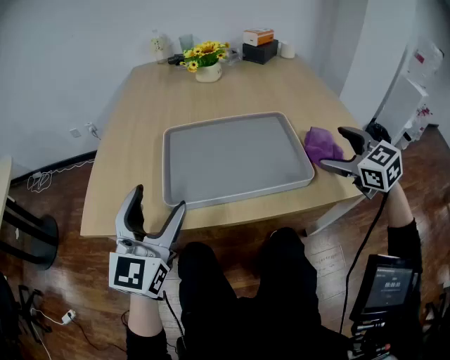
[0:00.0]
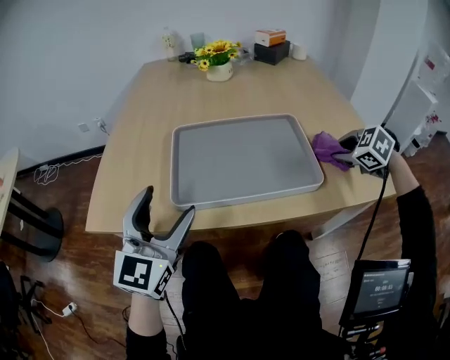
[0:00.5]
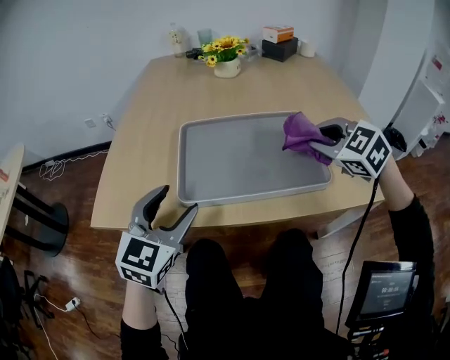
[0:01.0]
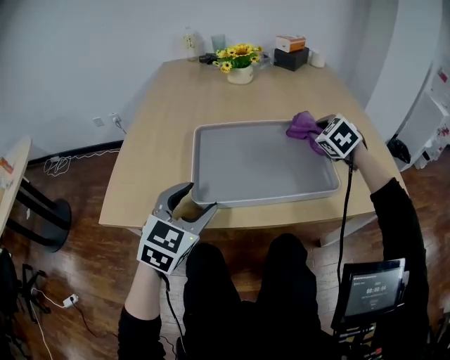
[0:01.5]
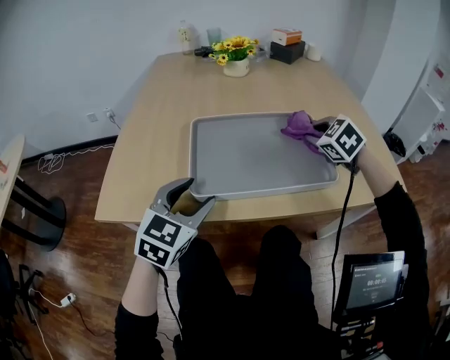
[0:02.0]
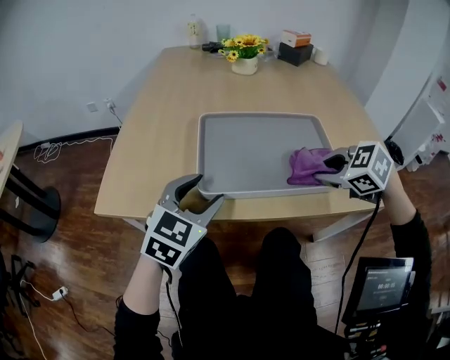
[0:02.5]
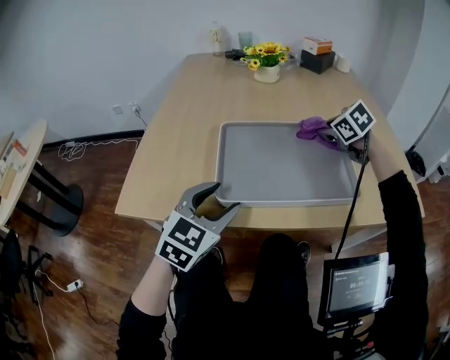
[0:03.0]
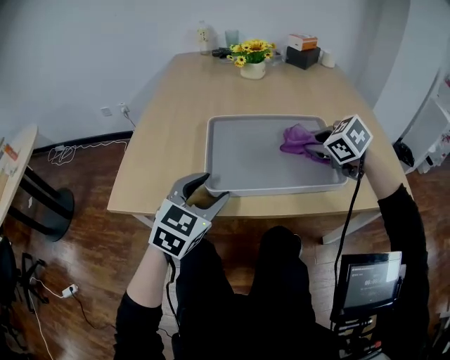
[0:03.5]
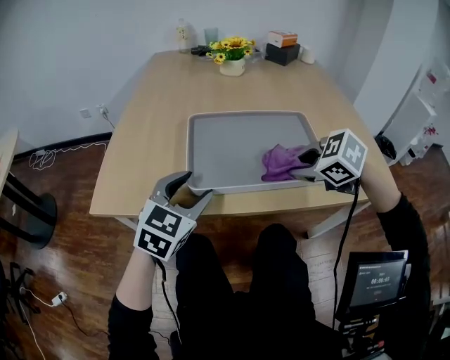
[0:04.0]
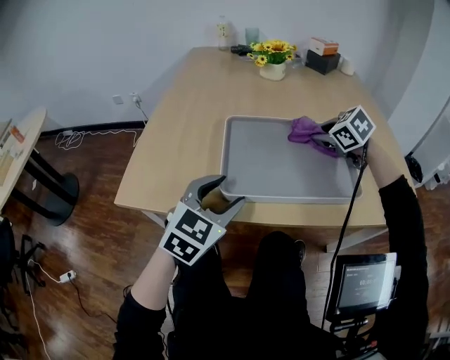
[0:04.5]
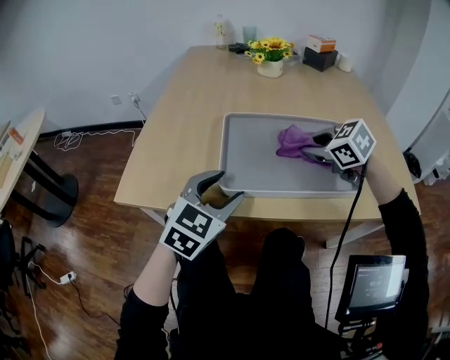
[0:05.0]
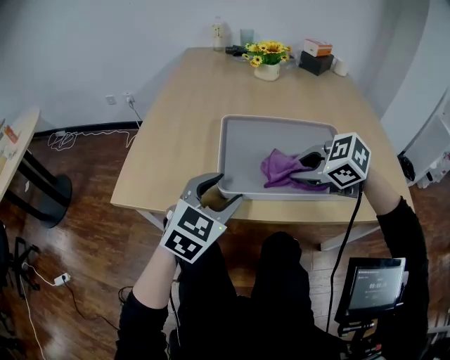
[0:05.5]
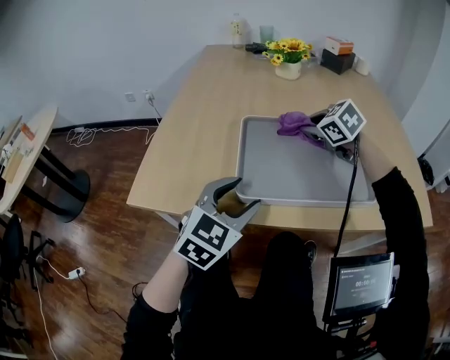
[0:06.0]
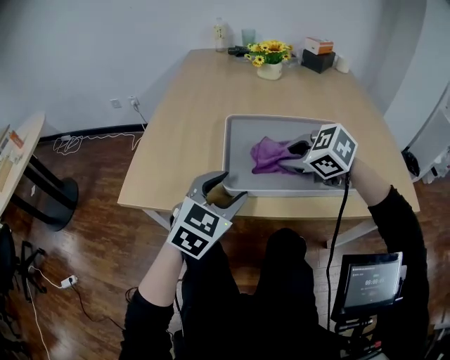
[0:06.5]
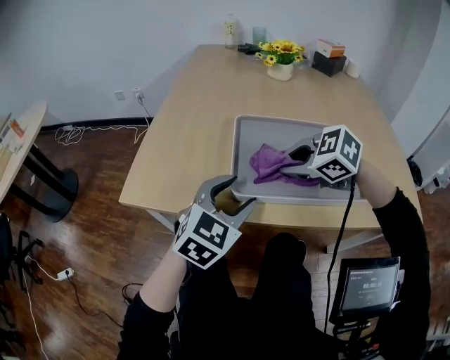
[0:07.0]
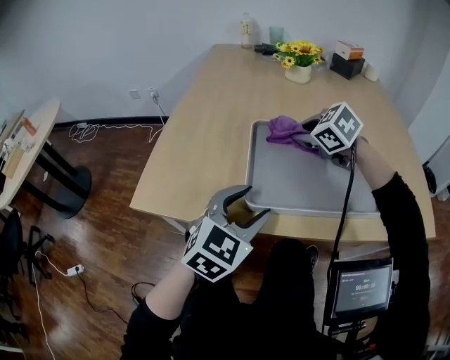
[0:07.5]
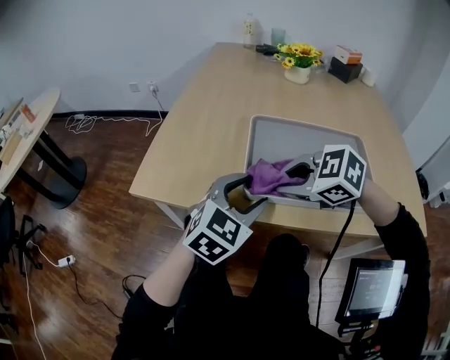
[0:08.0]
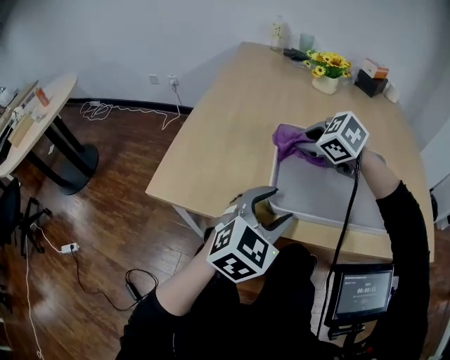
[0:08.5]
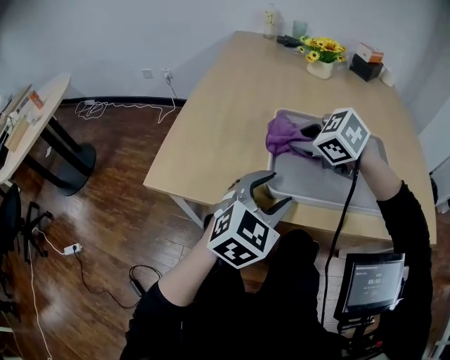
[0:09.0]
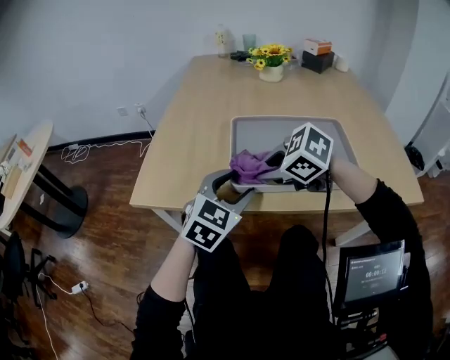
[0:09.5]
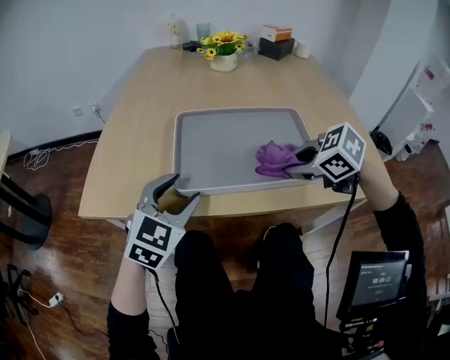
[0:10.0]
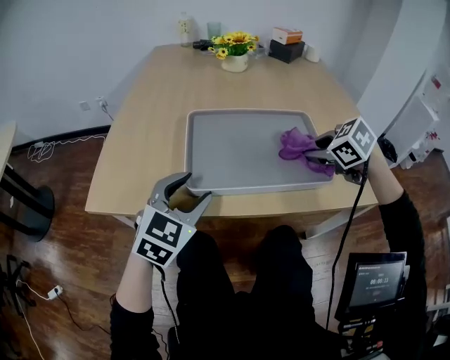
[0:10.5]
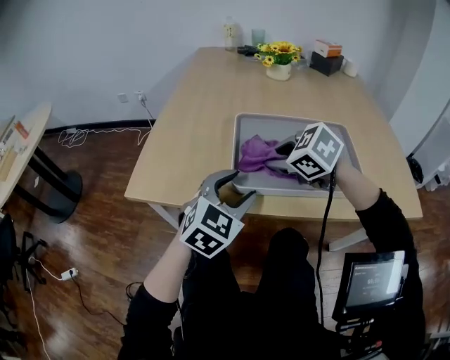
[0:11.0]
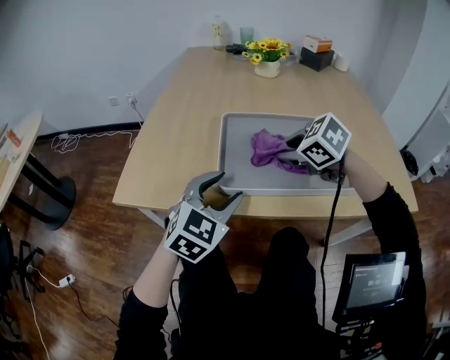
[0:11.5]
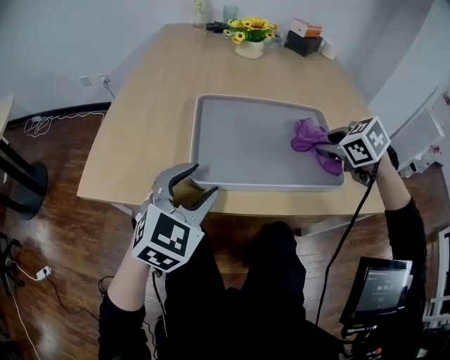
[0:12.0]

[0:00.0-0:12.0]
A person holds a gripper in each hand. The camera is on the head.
0:00.0 to 0:02.0: The left gripper moves downward, approximately 10 cm, turns by about 30 degrees, and closes; the right gripper shifts approximately 15 cm to the left, forward and downward, changes its angle by approximately 20 degrees, and closes.
0:02.0 to 0:04.0: The right gripper goes forward and backward, some 20 cm each way, reversing 2 times, and swivels some 30 degrees.
0:04.0 to 0:06.0: The right gripper goes forward and backward, approximately 20 cm each way, reversing 2 times.
0:06.0 to 0:08.0: The right gripper moves forward and backward over approximately 15 cm, changing direction 2 times, and swivels some 30 degrees.
0:08.0 to 0:10.0: The right gripper heads to the right, covering approximately 20 cm, reaches about 15 cm forward, then returns, and turns by approximately 30 degrees.
0:10.0 to 0:12.0: The right gripper moves left and right over roughly 25 cm, changing direction 2 times.

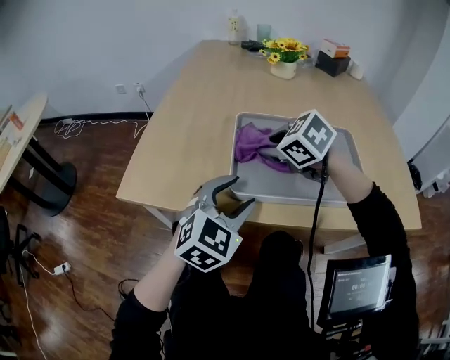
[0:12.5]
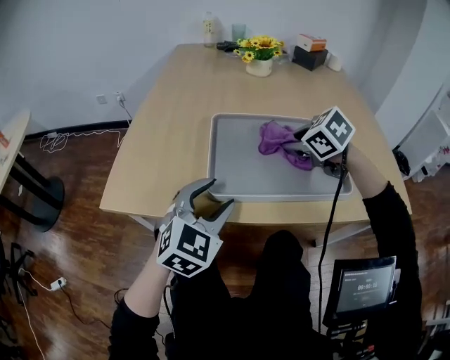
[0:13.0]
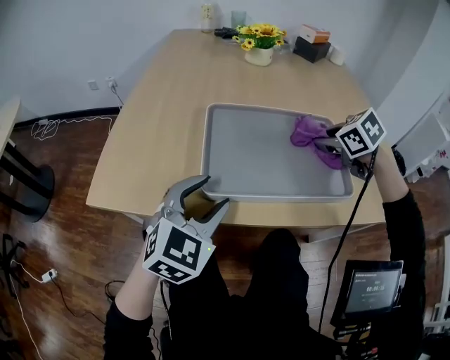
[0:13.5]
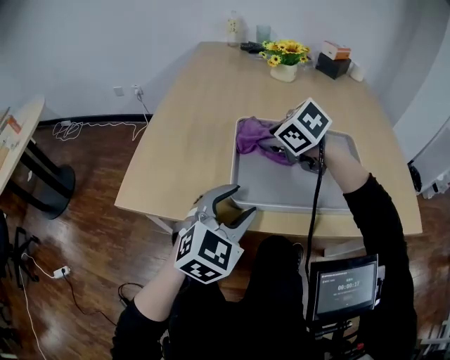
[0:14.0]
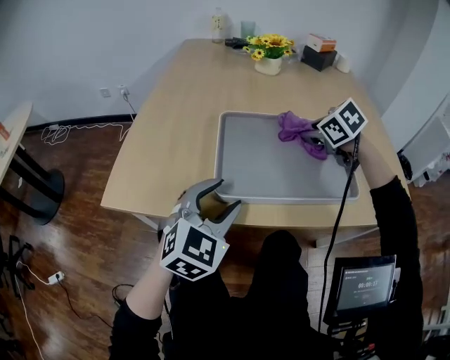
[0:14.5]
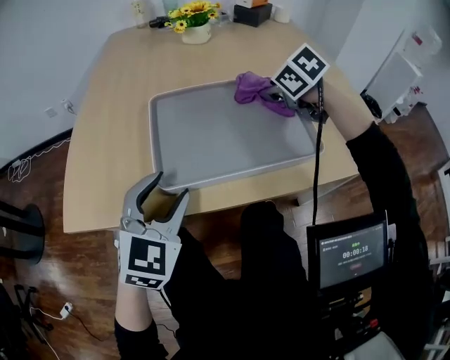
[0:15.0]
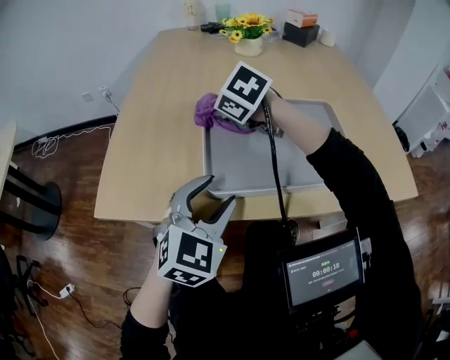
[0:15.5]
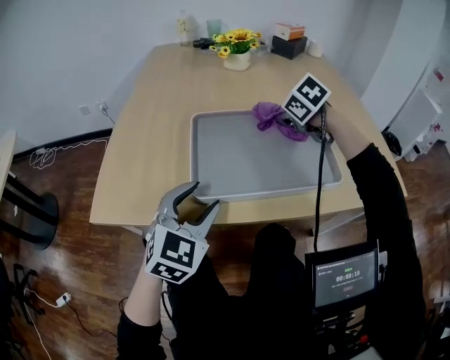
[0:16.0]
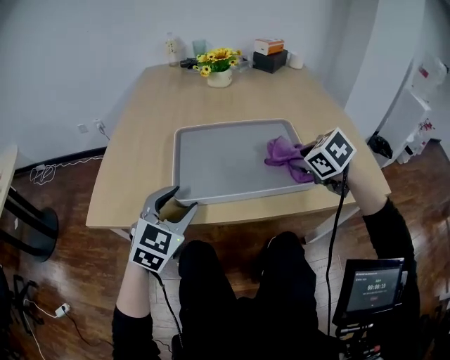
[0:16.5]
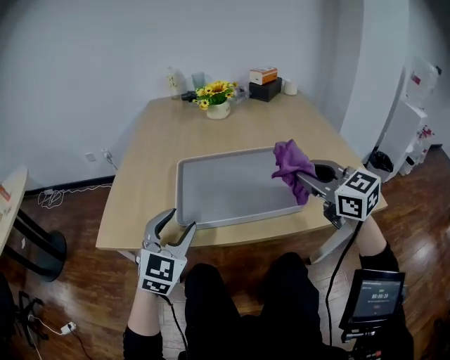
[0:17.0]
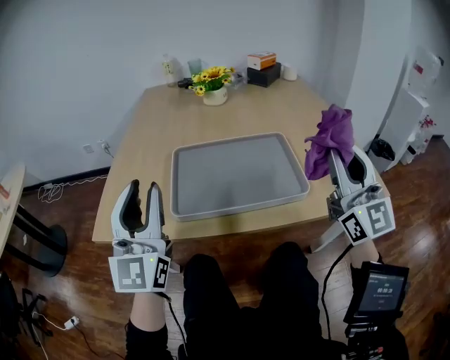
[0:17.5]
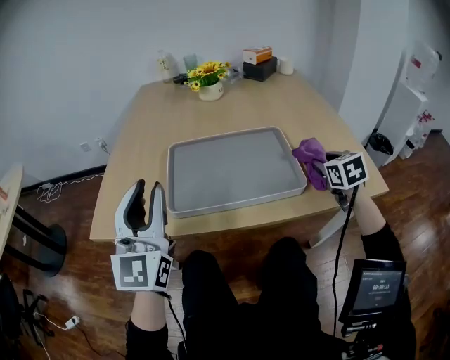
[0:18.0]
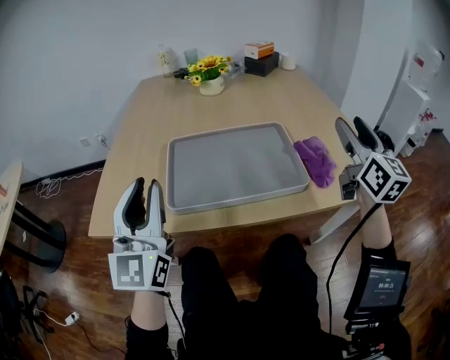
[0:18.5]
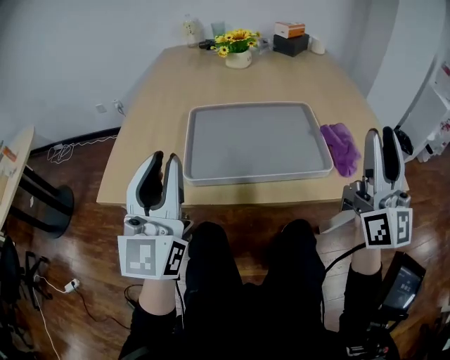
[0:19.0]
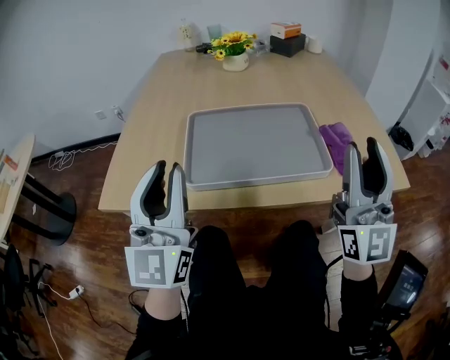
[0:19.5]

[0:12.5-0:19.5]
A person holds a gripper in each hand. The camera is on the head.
0:12.5 to 0:14.5: The right gripper goes left and right, some 25 cm each way, reversing 2 times.
0:14.5 to 0:16.0: The right gripper moves left and right over approximately 25 cm, changing direction 2 times.
0:16.0 to 0:17.5: The right gripper moves backward, upward and to the right, approximately 35 cm, and points its fingers some 80 degrees further upward. The left gripper moves upward, about 20 cm, and angles its fingers upward, by some 40 degrees.
0:17.5 to 0:19.5: The right gripper reaches roughly 20 cm downward, then returns.

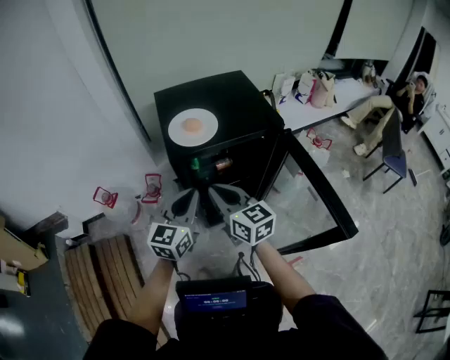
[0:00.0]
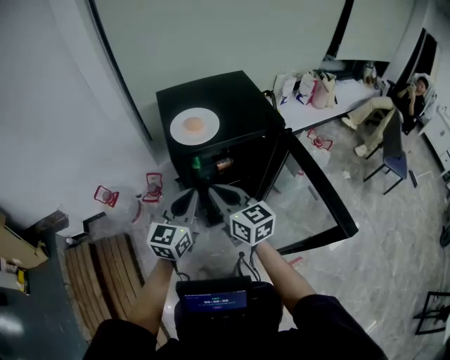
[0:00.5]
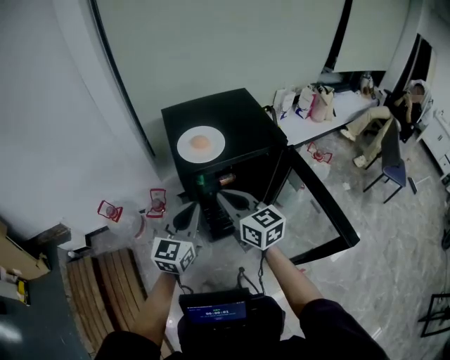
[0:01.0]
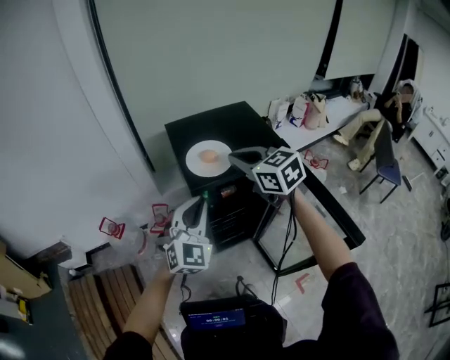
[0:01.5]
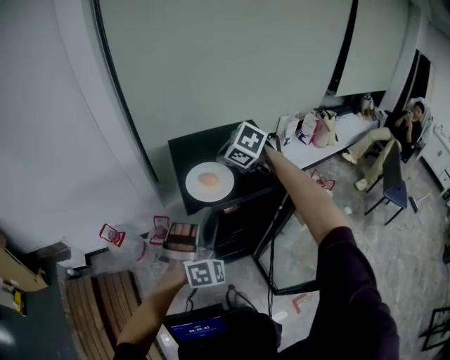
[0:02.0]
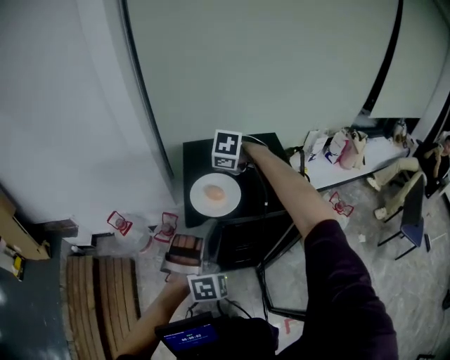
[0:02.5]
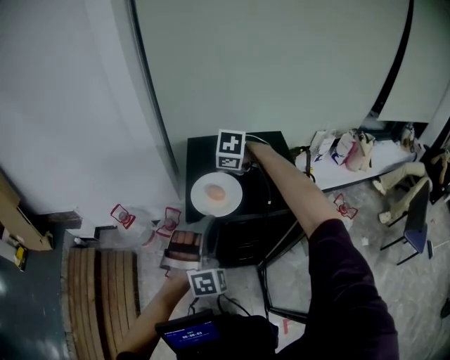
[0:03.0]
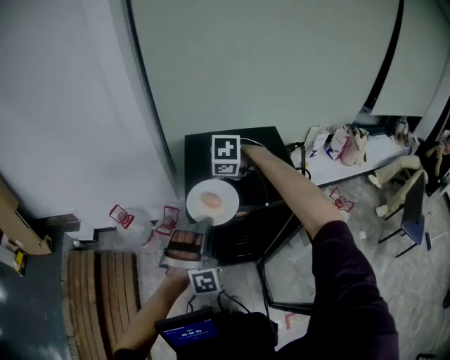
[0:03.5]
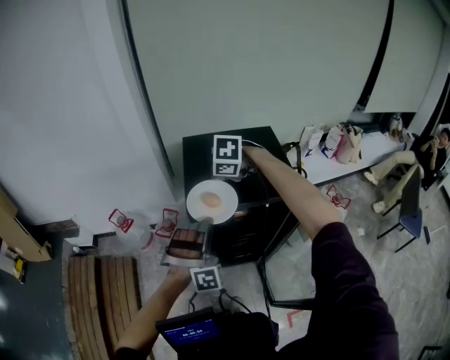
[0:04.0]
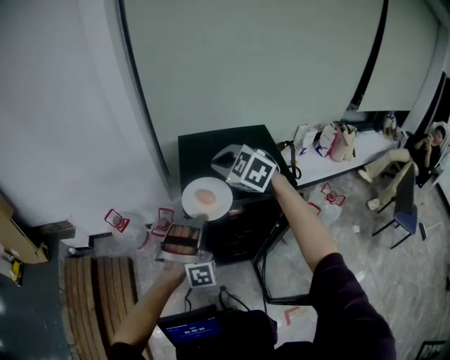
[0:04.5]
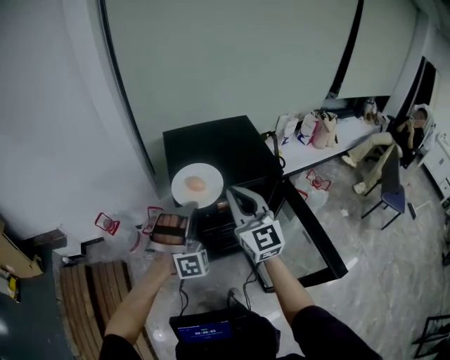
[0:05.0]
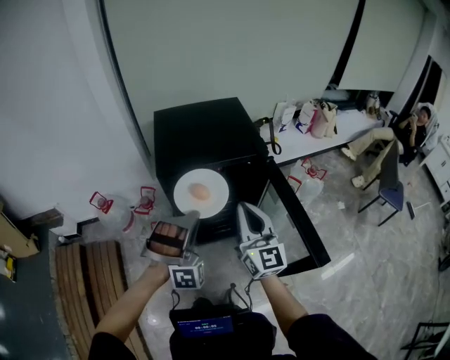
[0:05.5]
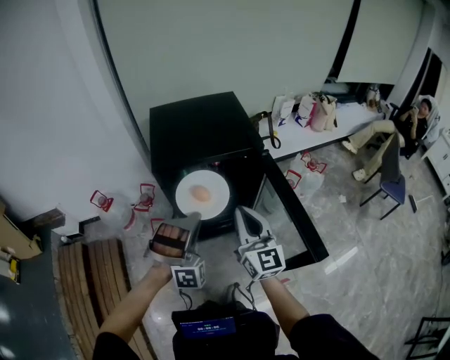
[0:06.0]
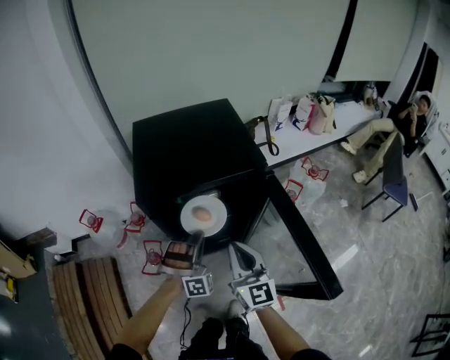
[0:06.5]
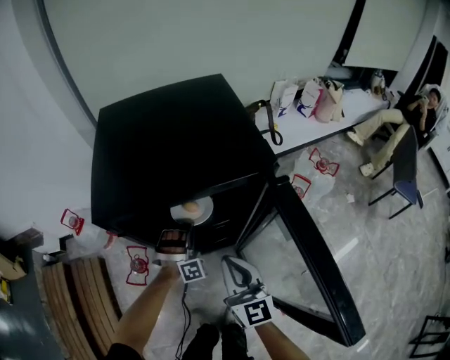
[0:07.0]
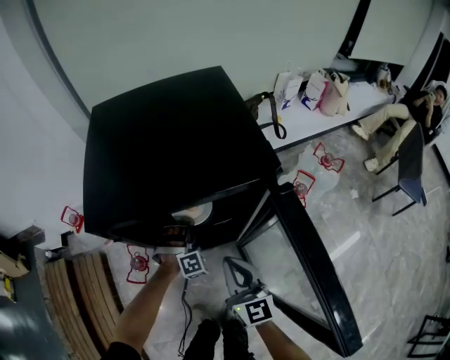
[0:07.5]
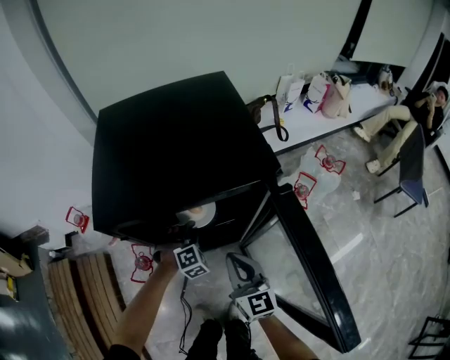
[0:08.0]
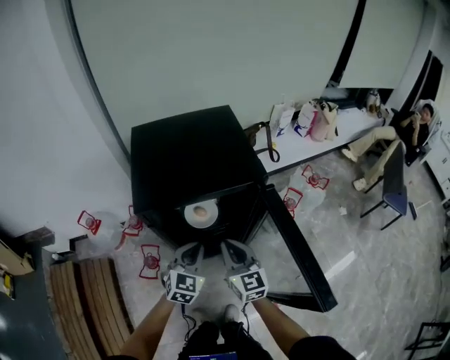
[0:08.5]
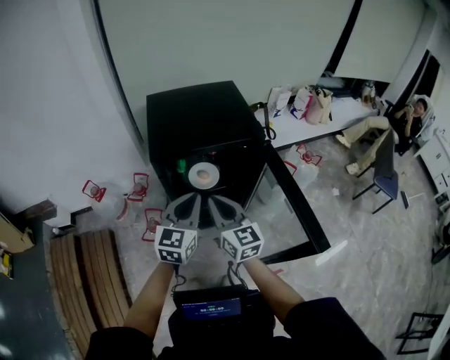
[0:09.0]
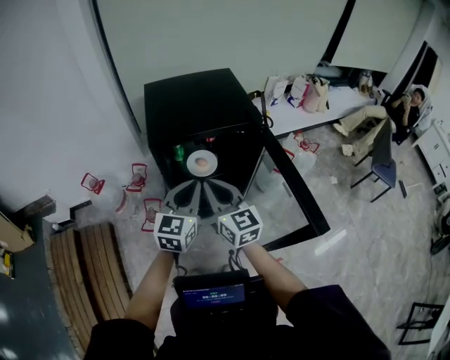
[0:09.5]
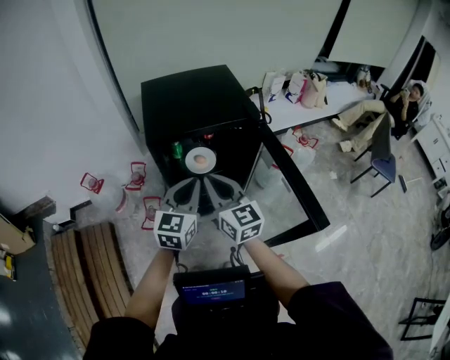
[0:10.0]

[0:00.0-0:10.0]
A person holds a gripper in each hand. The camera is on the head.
0:00.0 to 0:02.0: The left gripper heads upward and forward, covering roughly 10 cm, rolls clockwise, seen from behind, by about 80 degrees, and opens. Meanwhile the right gripper shifts approximately 25 cm forward, and points its fingers approximately 40 degrees further downward.
0:02.0 to 0:04.0: The left gripper turns by some 20 degrees, and closes. The right gripper shifts roughly 5 cm to the left, and rotates roughly 30 degrees.
0:04.0 to 0:06.0: The left gripper moves some 15 cm. The right gripper reaches approximately 10 cm upward, then returns, and tips its fingers upward by roughly 80 degrees.
0:06.0 to 0:08.0: The right gripper shifts roughly 25 cm downward and forward. Meanwhile the left gripper travels downward and forward by some 40 cm, and tips its fingers downward by about 40 degrees.
0:08.0 to 0:10.0: The right gripper goes roughly 25 cm upward and to the left; the left gripper heads upward and backward, covering roughly 40 cm, and tips its fingers upward by about 40 degrees.
